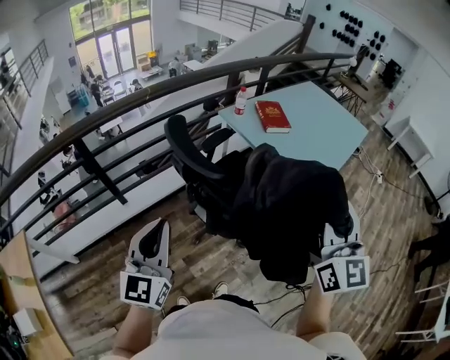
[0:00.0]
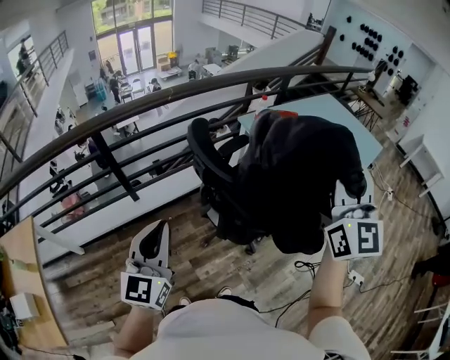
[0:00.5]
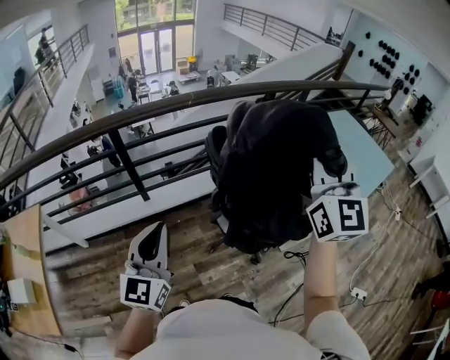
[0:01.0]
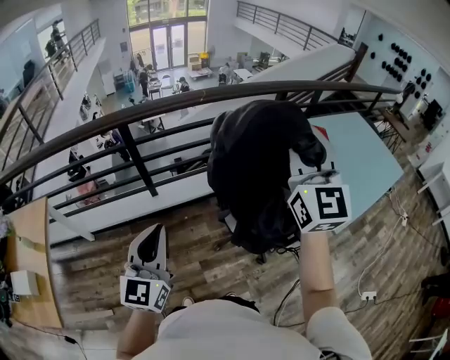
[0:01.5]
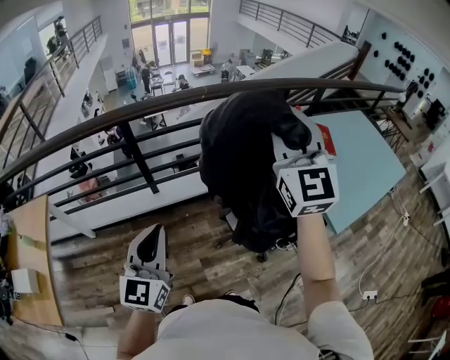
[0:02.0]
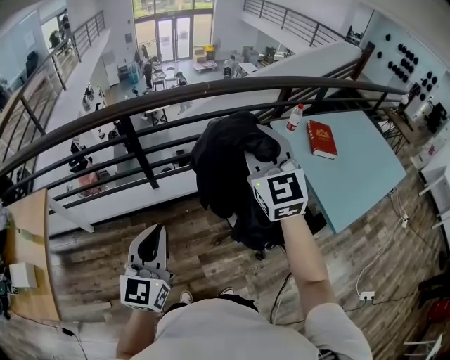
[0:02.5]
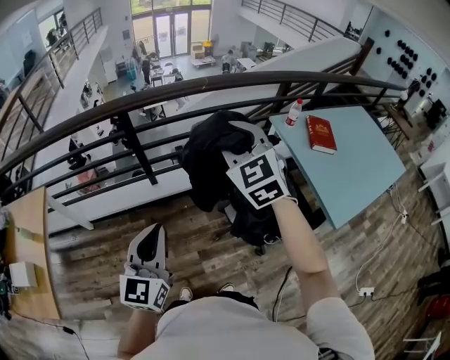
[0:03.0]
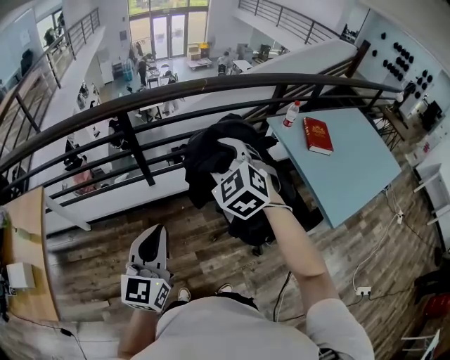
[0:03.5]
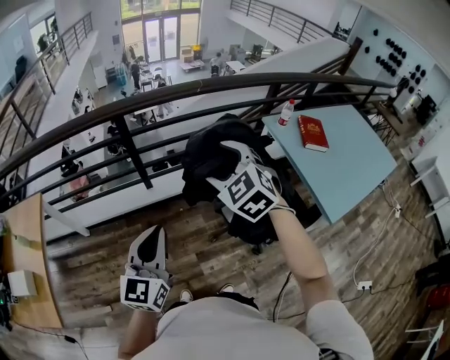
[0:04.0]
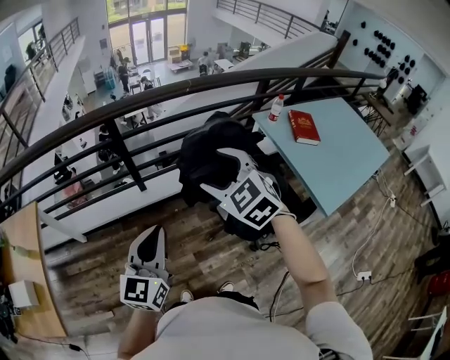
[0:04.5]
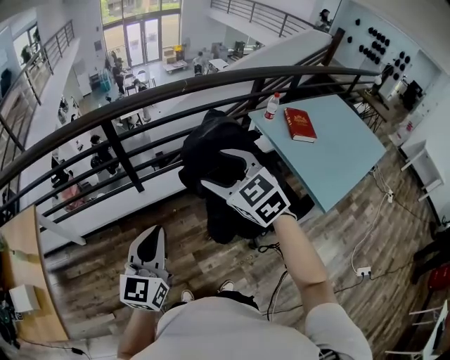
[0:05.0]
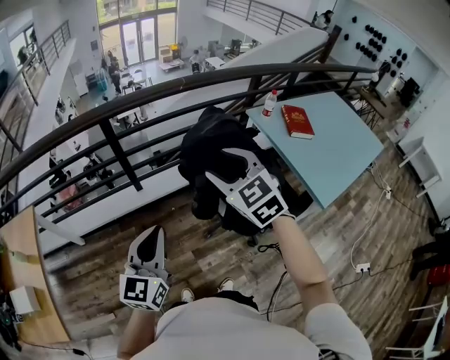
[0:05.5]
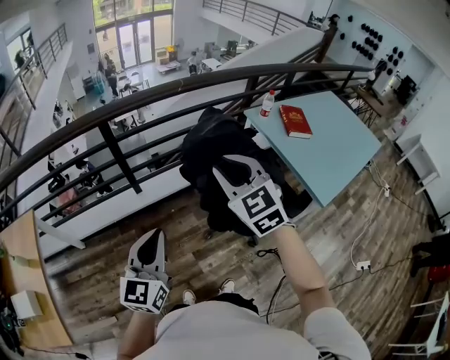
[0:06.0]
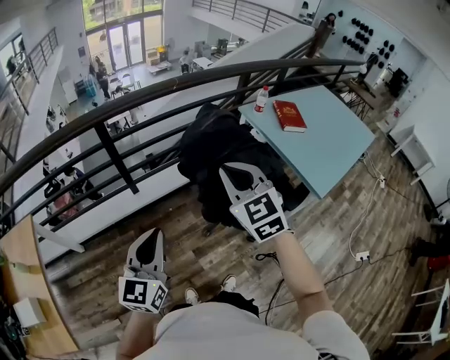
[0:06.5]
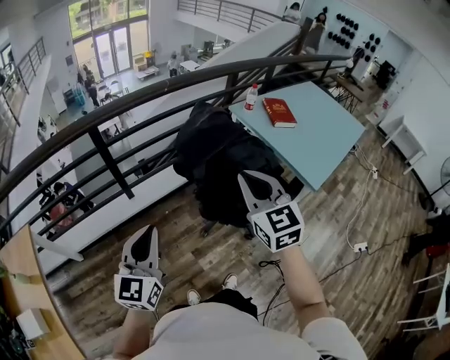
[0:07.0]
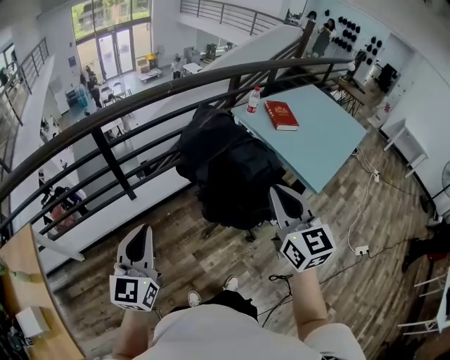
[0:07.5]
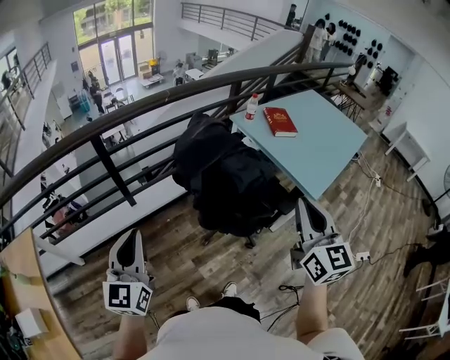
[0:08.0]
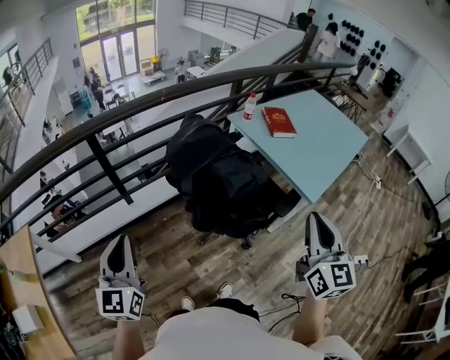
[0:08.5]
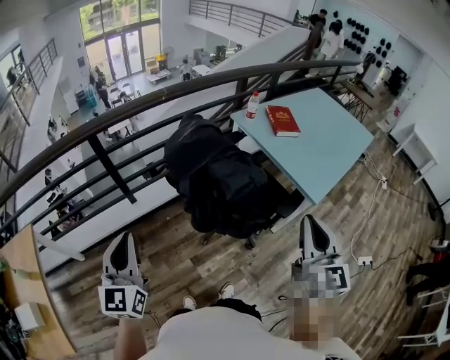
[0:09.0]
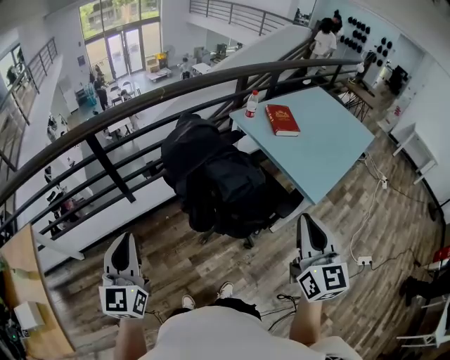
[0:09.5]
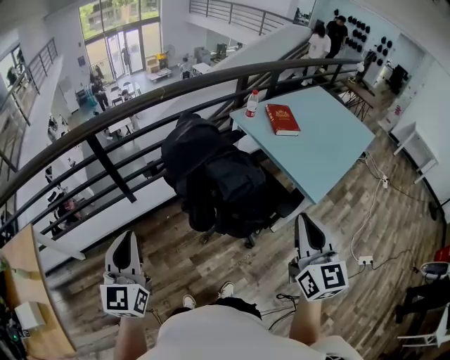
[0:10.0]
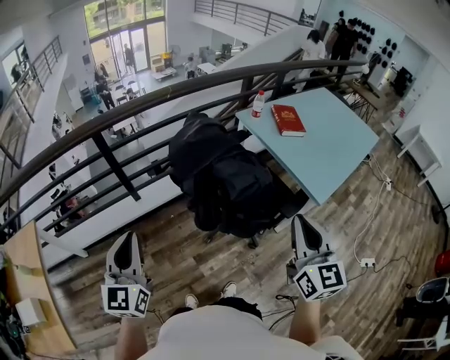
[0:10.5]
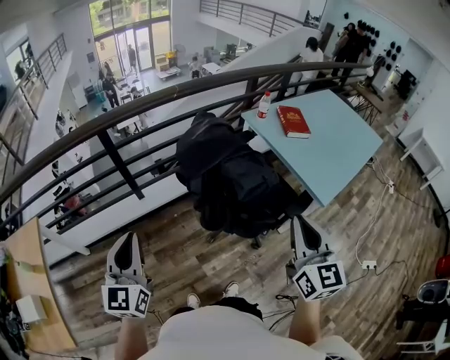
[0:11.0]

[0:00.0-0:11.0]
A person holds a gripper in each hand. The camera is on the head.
0:00.0 to 0:02.0: The right gripper heads to the left and forward, covering roughly 30 cm, and rotates approximately 30 degrees; the left gripper goes some 10 cm to the left.
0:02.0 to 0:03.5: The right gripper shifts some 20 cm downward and to the left, and angles its fingers downward, by approximately 40 degrees.
0:03.5 to 0:05.5: The right gripper moves backward, about 5 cm.
0:05.5 to 0:07.5: The right gripper goes approximately 20 cm backward and to the right, swivels about 40 degrees, and closes, while the left gripper travels to the left by some 5 cm.
0:07.5 to 0:09.0: The right gripper moves to the right, approximately 15 cm.
0:09.0 to 0:11.0: The right gripper is displaced to the left by approximately 5 cm.

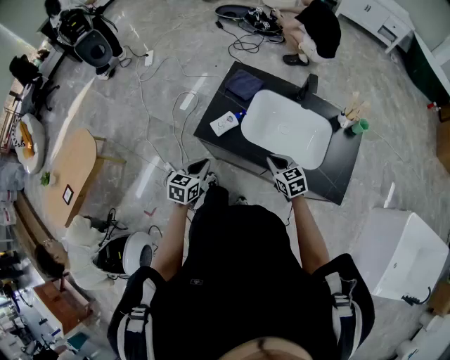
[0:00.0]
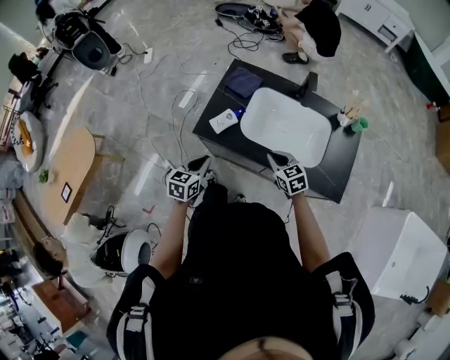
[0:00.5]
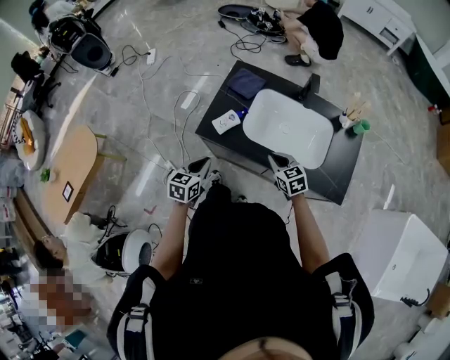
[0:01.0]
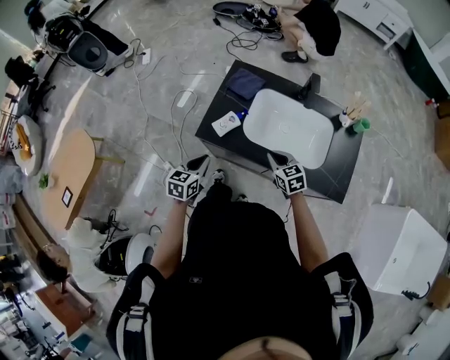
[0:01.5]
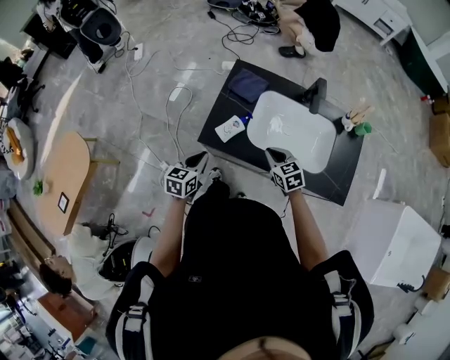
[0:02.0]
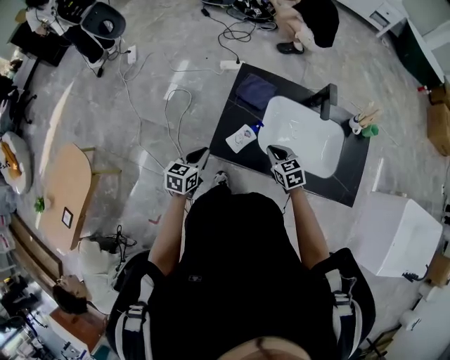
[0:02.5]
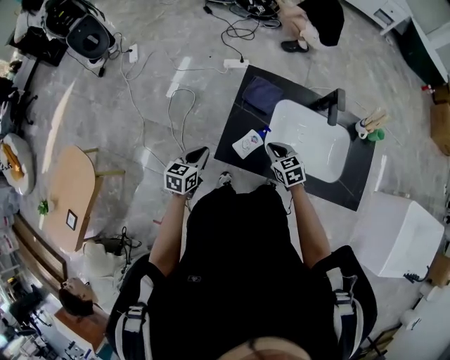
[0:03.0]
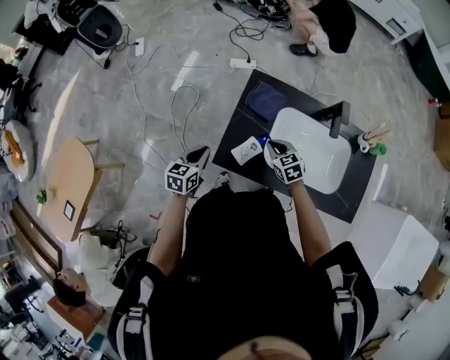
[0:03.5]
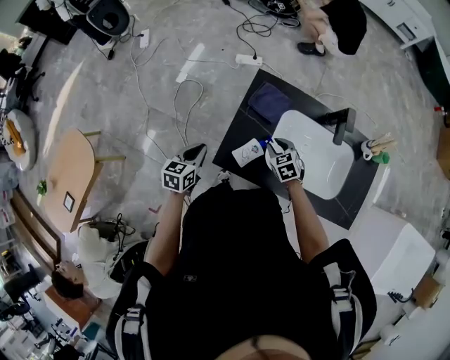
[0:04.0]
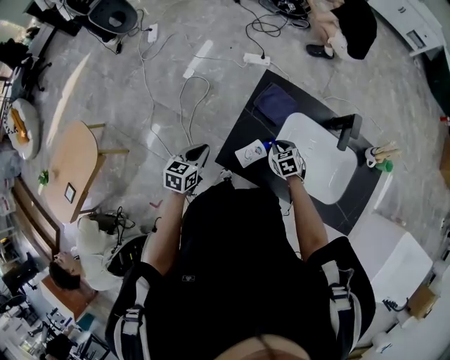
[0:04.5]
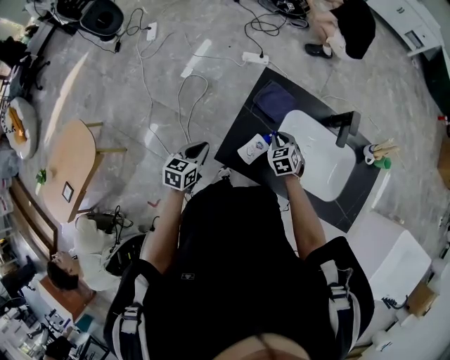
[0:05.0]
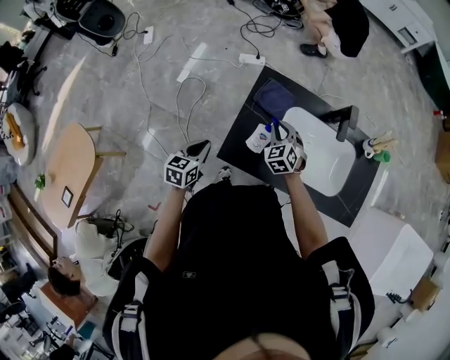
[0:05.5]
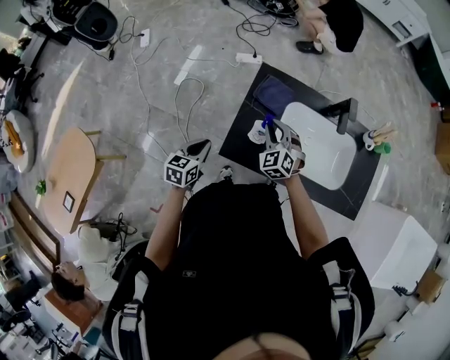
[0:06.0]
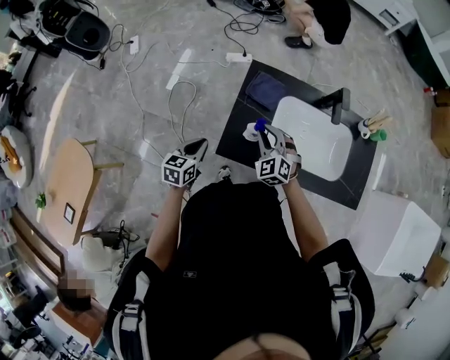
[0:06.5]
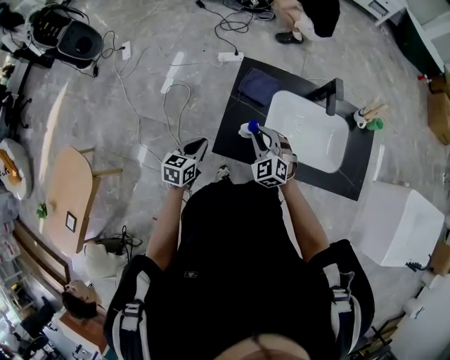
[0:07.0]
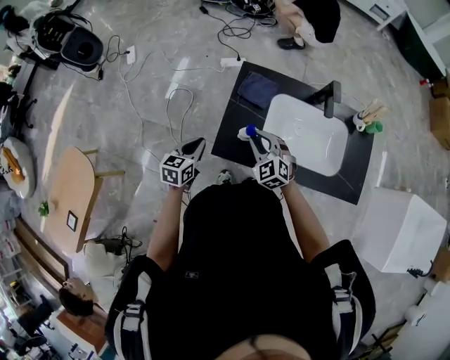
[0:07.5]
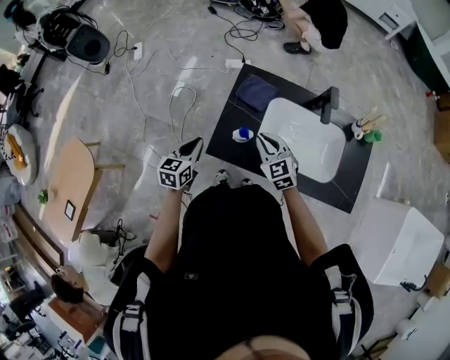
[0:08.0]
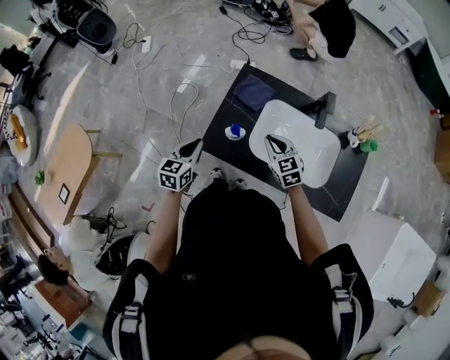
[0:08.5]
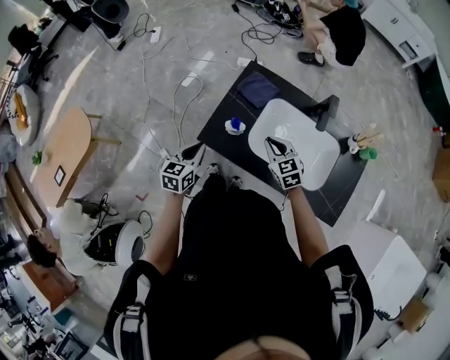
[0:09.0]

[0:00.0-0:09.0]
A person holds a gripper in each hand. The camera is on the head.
0:00.0 to 0:02.0: The two grippers go approximately 5 cm forward.
0:02.0 to 0:04.5: The left gripper is displaced forward and to the left by about 15 cm. Meanwhile the right gripper is displaced forward and downward by approximately 20 cm.
0:04.5 to 0:07.0: The right gripper shifts roughly 20 cm upward, to the left and backward, and turns by approximately 40 degrees.
0:07.0 to 0:09.0: The left gripper shifts about 10 cm to the right and backward, while the right gripper travels to the right by some 10 cm, and changes its angle by approximately 30 degrees.

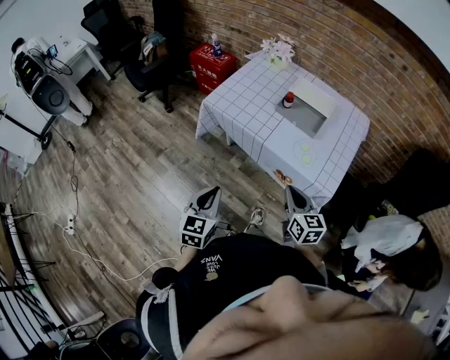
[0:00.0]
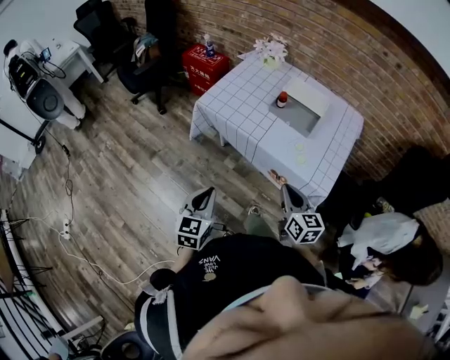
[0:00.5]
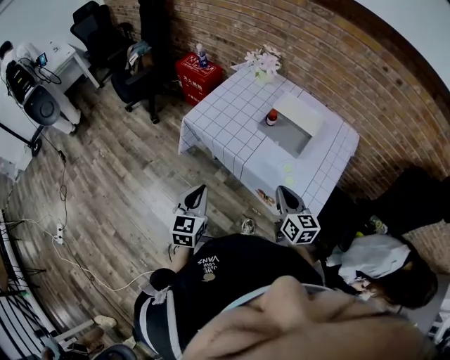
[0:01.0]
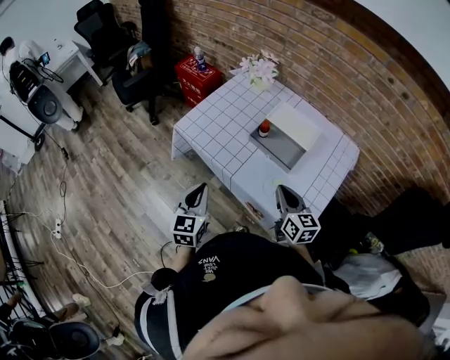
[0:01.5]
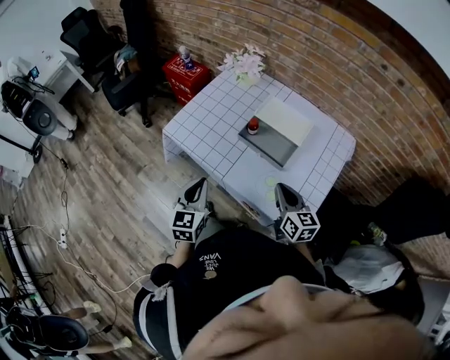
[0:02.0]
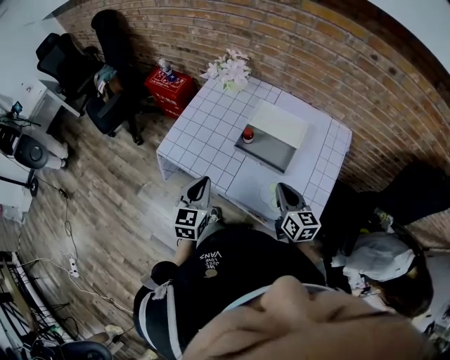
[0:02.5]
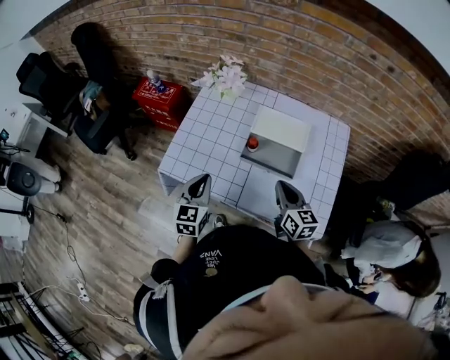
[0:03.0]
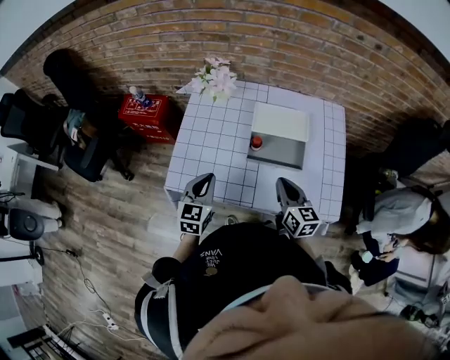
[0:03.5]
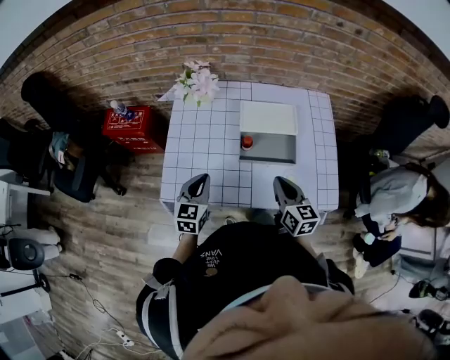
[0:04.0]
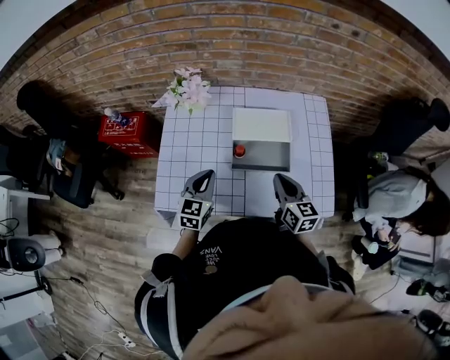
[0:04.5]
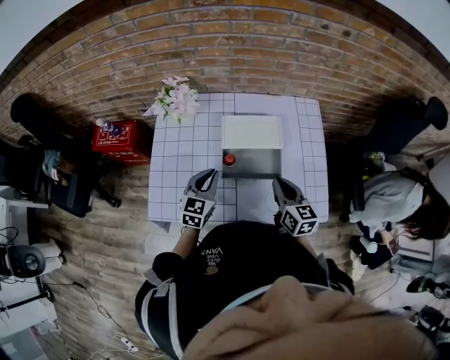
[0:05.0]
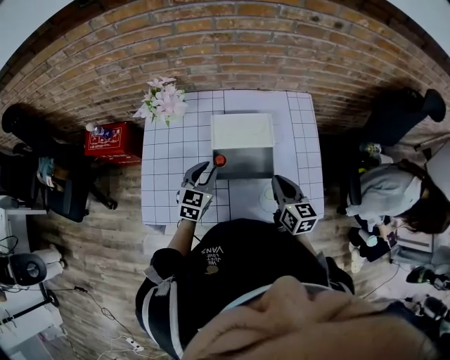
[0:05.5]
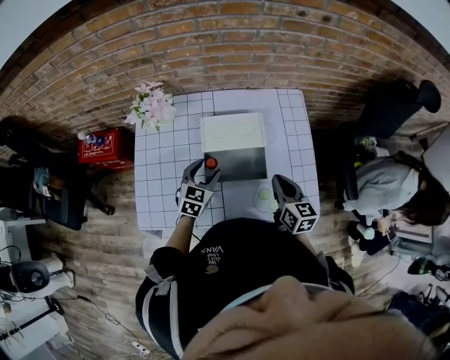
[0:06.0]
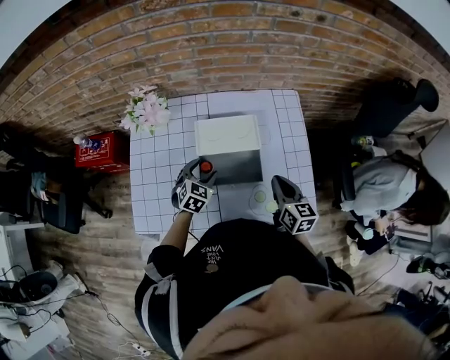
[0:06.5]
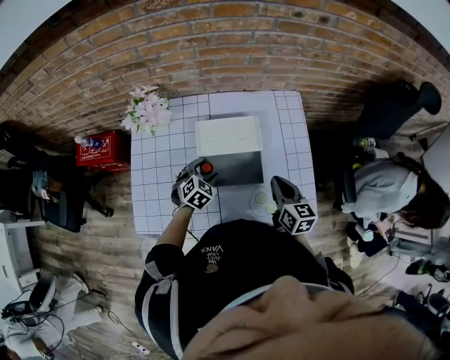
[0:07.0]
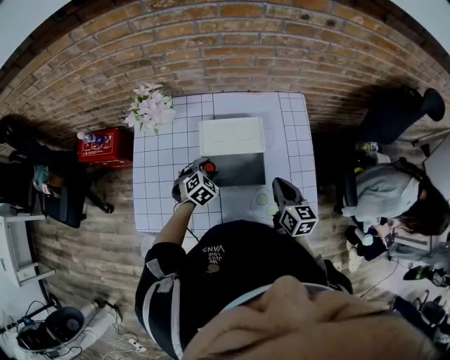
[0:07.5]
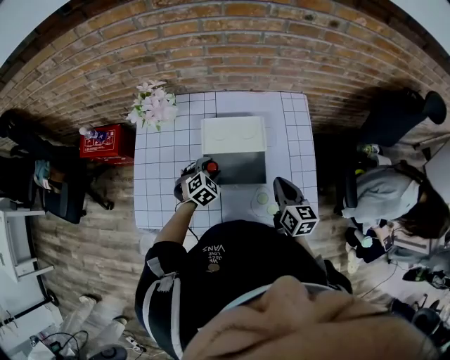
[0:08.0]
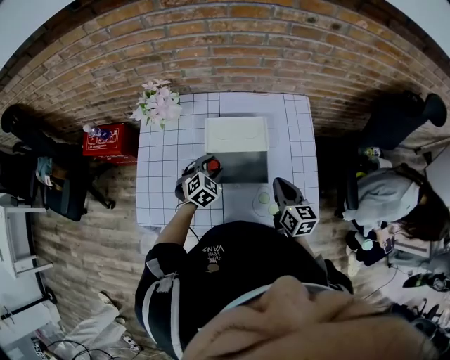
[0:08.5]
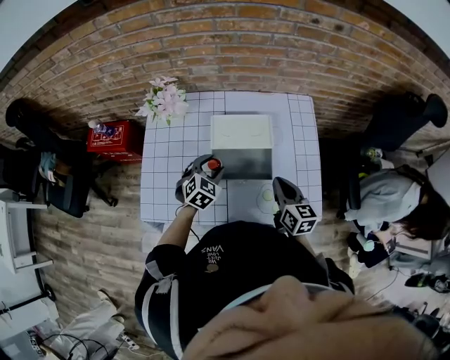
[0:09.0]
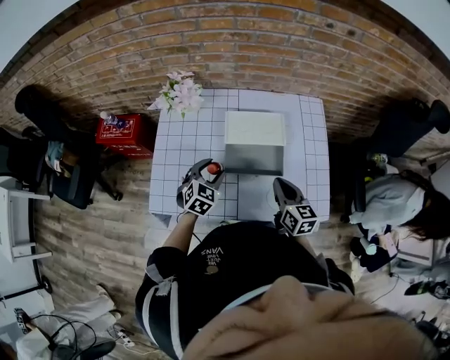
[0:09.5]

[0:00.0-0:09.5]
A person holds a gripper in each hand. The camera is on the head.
0:00.0 to 0:02.0: The two grippers go some 25 cm forward and to the right.
0:02.0 to 0:04.0: The right gripper moves some 15 cm, and swivels some 30 degrees. Meanwhile the left gripper changes place by approximately 25 cm, and rotates roughly 40 degrees.
0:04.0 to 0:05.5: The left gripper shifts about 15 cm forward and to the right; the right gripper shifts some 10 cm to the right and forward.
0:05.5 to 0:07.5: The left gripper moves downward, about 10 cm, swivels some 40 degrees, and opens.
0:07.5 to 0:09.5: The right gripper heads to the left, covering roughly 5 cm. The left gripper moves upward, backward and to the left, some 10 cm, and rotates approximately 20 degrees.
